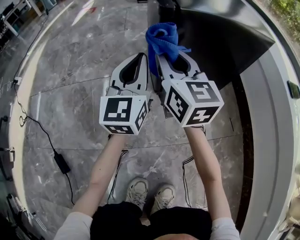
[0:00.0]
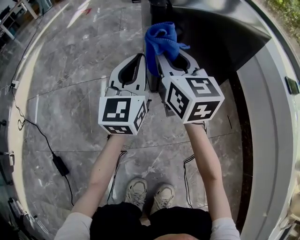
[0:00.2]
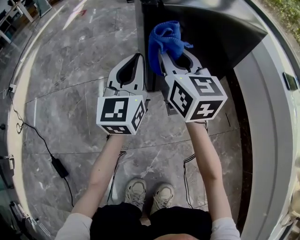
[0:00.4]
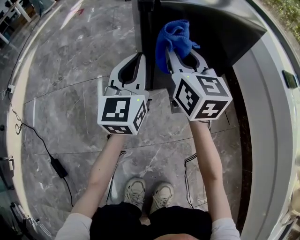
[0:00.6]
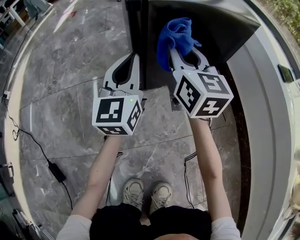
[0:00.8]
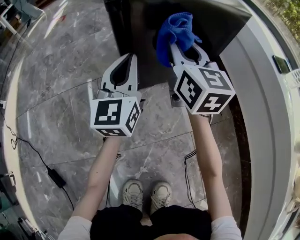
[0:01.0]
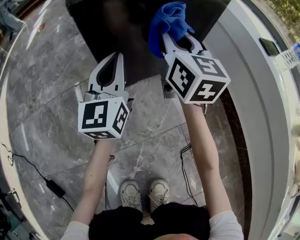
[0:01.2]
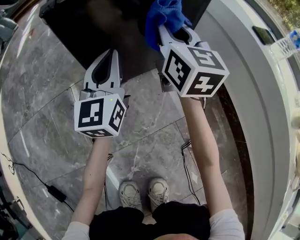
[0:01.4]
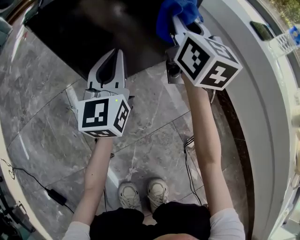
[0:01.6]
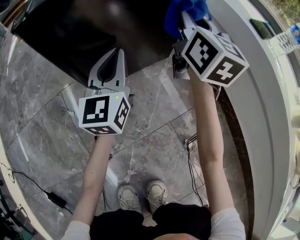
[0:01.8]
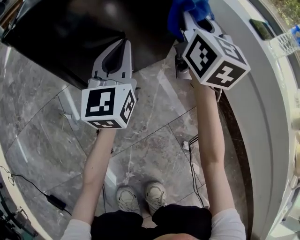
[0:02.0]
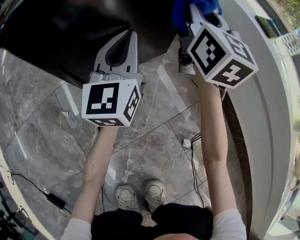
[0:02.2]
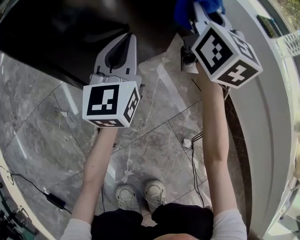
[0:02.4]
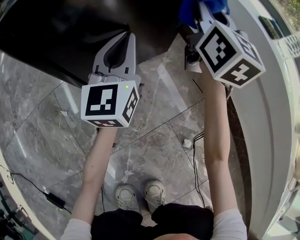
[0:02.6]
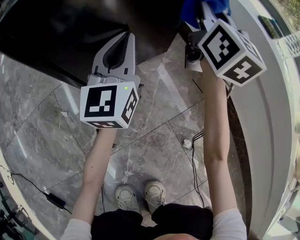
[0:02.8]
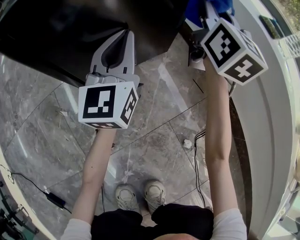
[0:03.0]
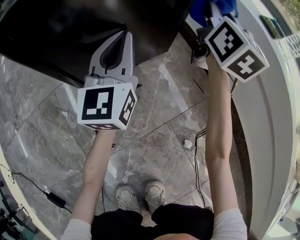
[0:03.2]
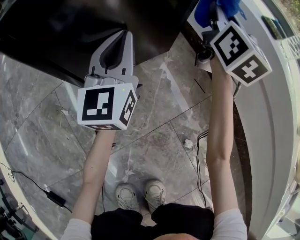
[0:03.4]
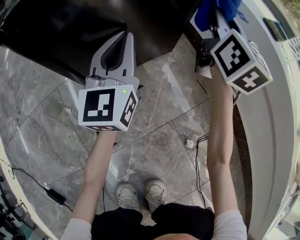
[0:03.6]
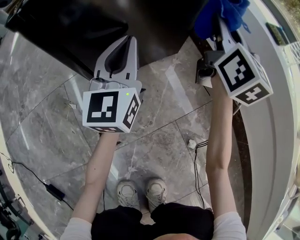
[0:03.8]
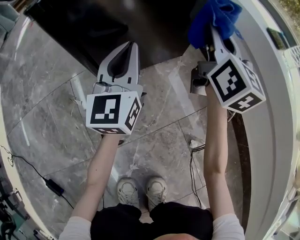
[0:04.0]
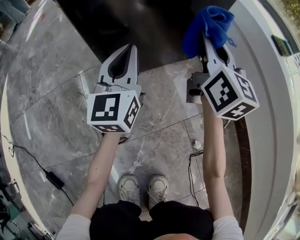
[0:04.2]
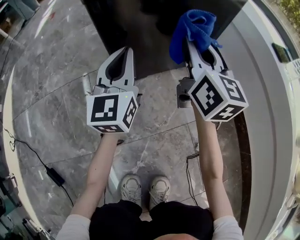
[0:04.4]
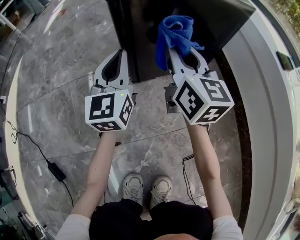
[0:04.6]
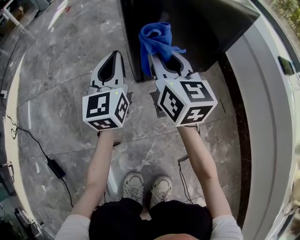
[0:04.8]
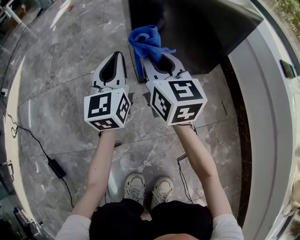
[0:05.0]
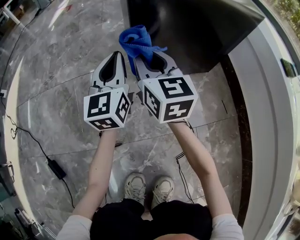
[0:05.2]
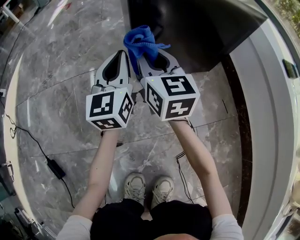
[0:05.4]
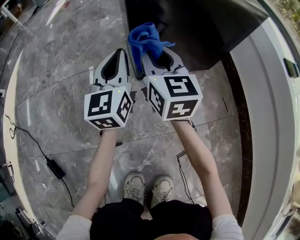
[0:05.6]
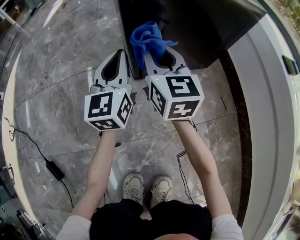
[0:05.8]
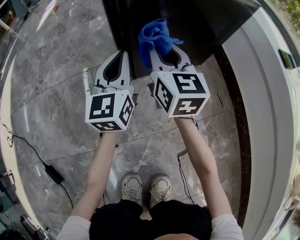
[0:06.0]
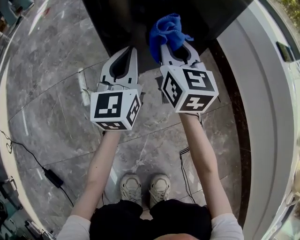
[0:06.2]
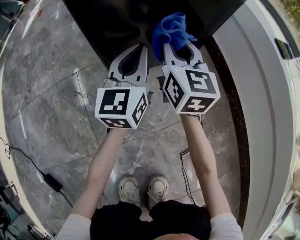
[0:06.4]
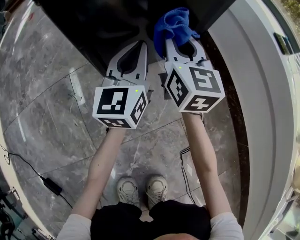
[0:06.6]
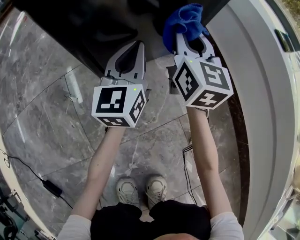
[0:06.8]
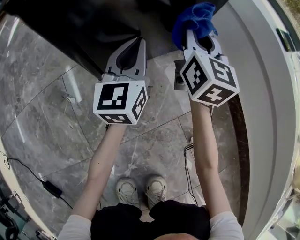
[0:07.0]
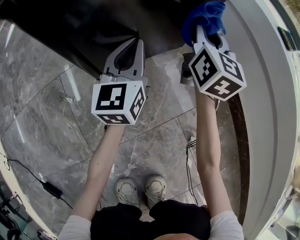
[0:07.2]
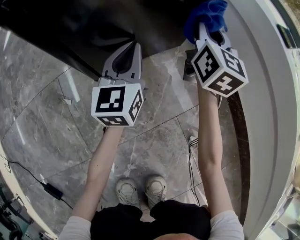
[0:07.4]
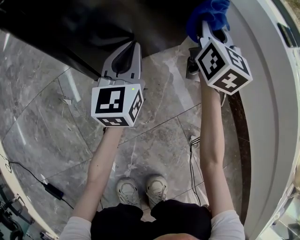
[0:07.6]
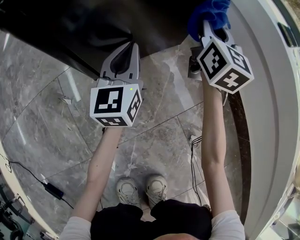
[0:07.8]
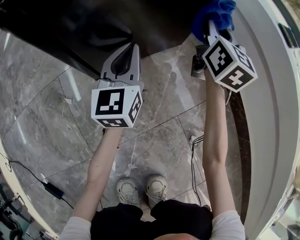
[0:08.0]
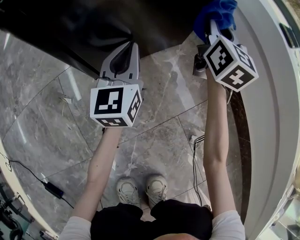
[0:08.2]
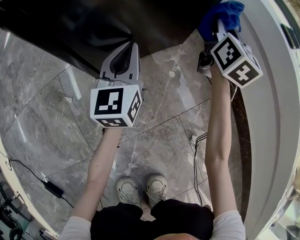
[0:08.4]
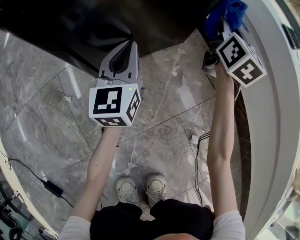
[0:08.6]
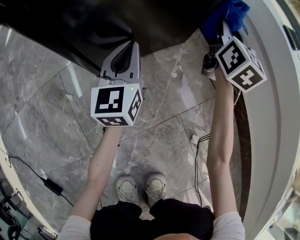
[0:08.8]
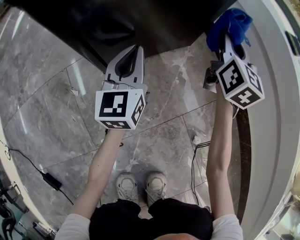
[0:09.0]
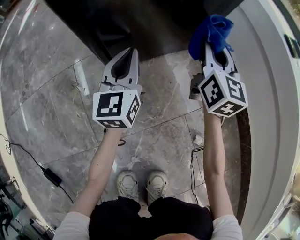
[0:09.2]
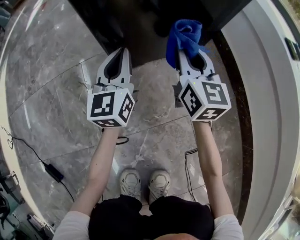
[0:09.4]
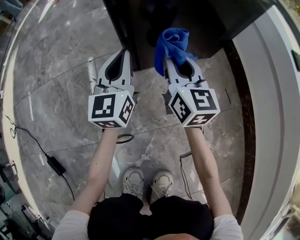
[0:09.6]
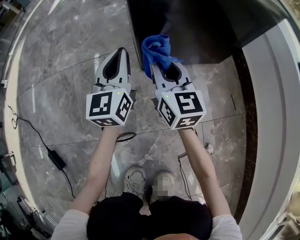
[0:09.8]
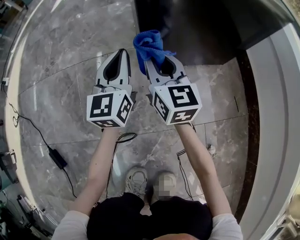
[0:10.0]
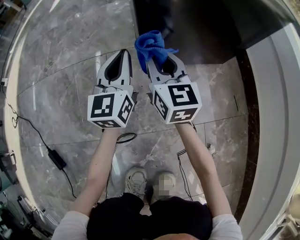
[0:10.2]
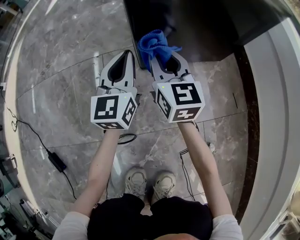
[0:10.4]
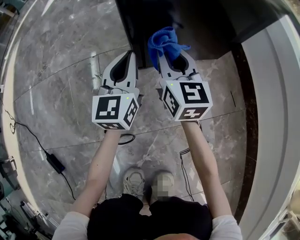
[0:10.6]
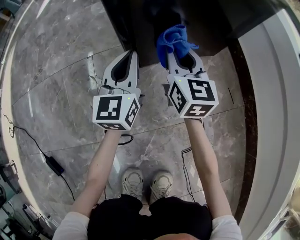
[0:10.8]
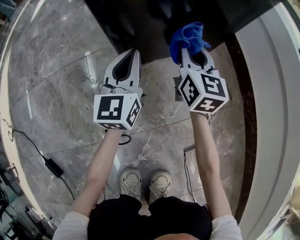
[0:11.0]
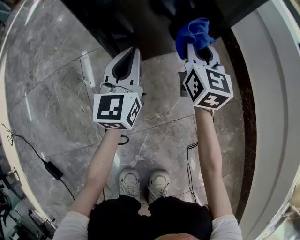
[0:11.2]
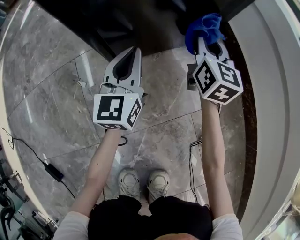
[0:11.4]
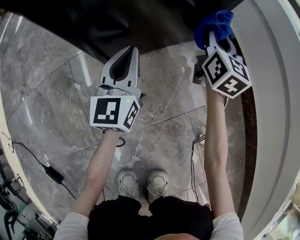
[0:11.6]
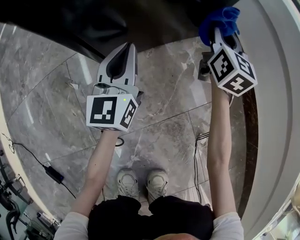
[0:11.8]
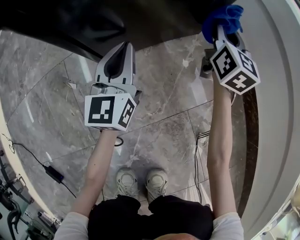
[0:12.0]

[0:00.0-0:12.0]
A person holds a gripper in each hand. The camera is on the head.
0:00.0 to 0:01.6: The left gripper shifts approximately 15 cm to the right; the right gripper moves to the right, approximately 30 cm, and changes its angle by roughly 30 degrees.
0:01.6 to 0:03.0: The right gripper heads to the right and forward, covering roughly 10 cm; the left gripper moves forward, roughly 5 cm.
0:03.0 to 0:04.4: Both grippers move to the left and backward, about 15 cm. The right gripper changes its angle by some 20 degrees.
0:04.4 to 0:06.0: The right gripper shifts about 10 cm to the left and downward.
0:06.0 to 0:07.6: The left gripper heads to the right, downward and forward, covering roughly 15 cm. The right gripper travels to the right and forward by roughly 25 cm, and swivels about 30 degrees.
0:09.0 to 0:10.4: The left gripper shifts by roughly 15 cm. The right gripper moves some 35 cm, and changes its angle by roughly 40 degrees.
0:10.4 to 0:12.0: The left gripper heads to the right, covering some 15 cm. The right gripper moves to the right, roughly 30 cm, and rotates approximately 30 degrees.

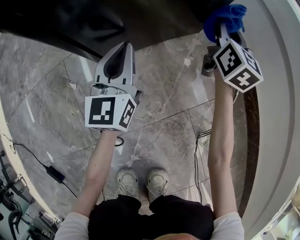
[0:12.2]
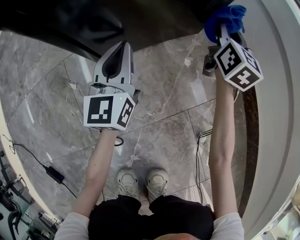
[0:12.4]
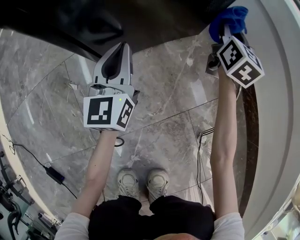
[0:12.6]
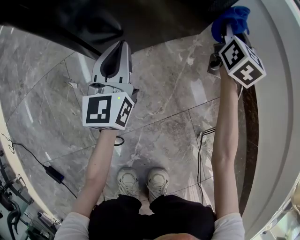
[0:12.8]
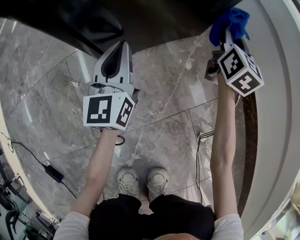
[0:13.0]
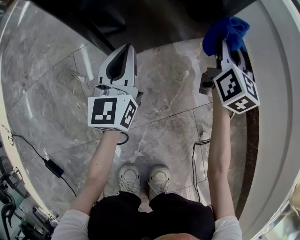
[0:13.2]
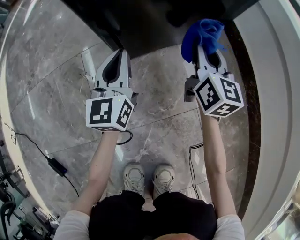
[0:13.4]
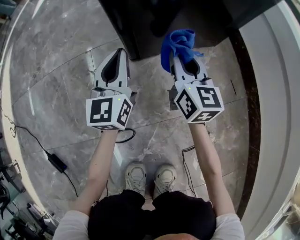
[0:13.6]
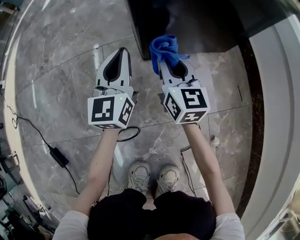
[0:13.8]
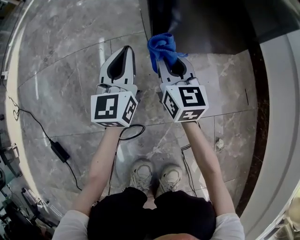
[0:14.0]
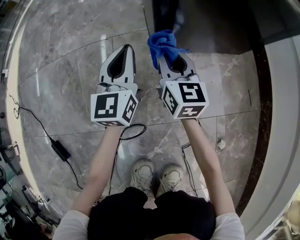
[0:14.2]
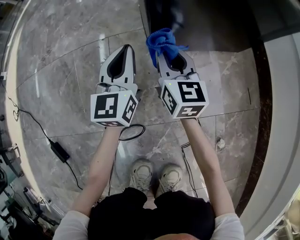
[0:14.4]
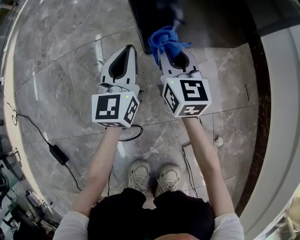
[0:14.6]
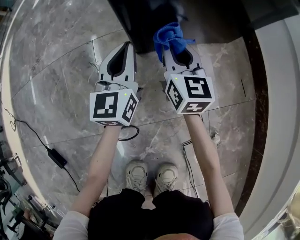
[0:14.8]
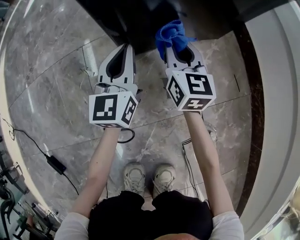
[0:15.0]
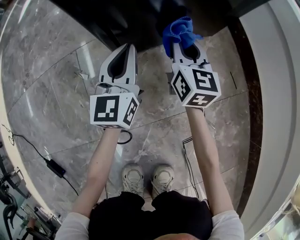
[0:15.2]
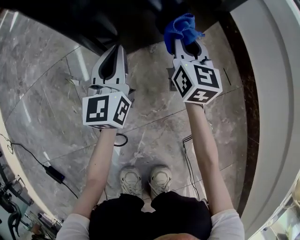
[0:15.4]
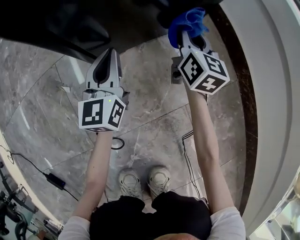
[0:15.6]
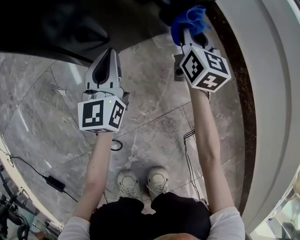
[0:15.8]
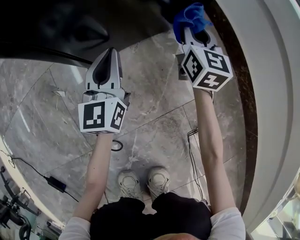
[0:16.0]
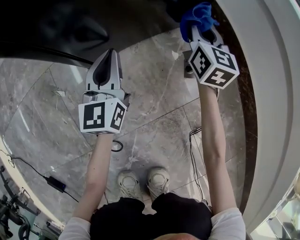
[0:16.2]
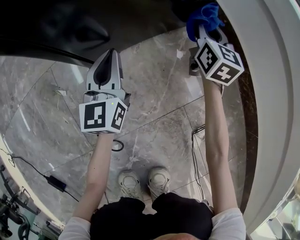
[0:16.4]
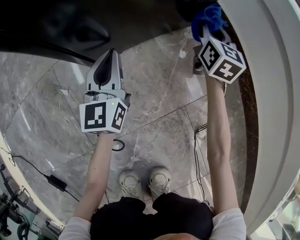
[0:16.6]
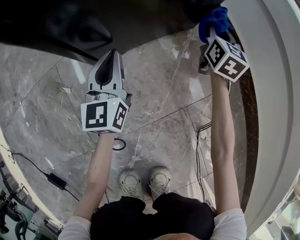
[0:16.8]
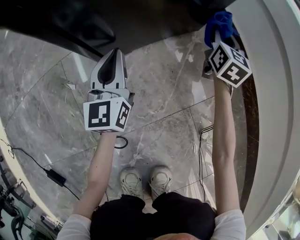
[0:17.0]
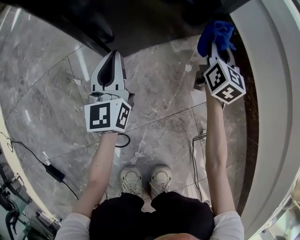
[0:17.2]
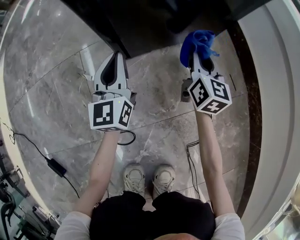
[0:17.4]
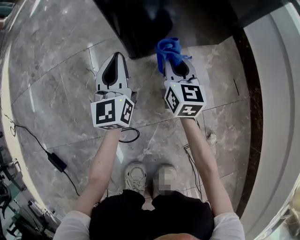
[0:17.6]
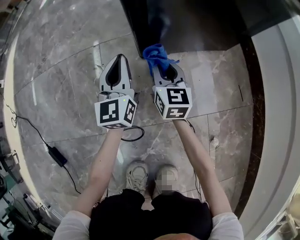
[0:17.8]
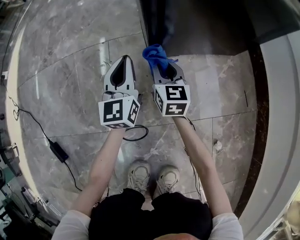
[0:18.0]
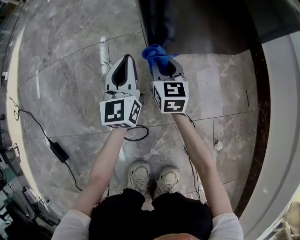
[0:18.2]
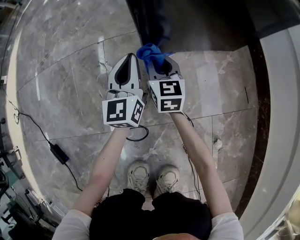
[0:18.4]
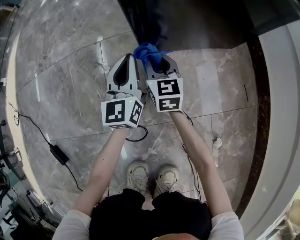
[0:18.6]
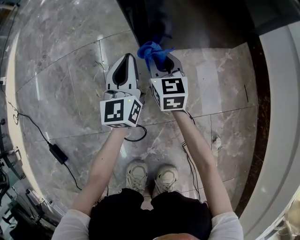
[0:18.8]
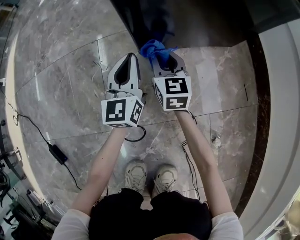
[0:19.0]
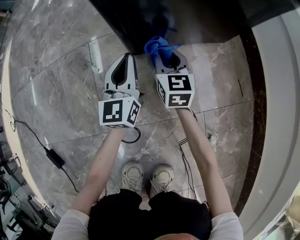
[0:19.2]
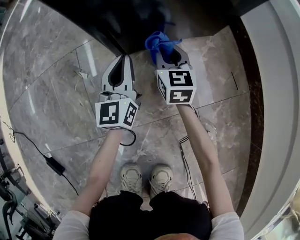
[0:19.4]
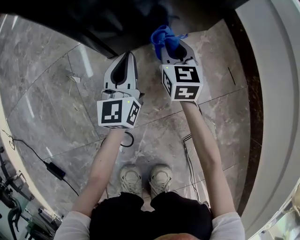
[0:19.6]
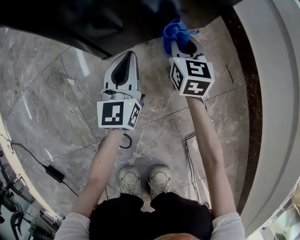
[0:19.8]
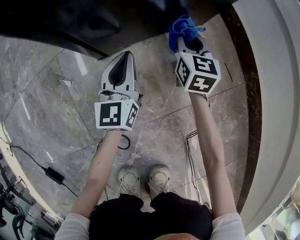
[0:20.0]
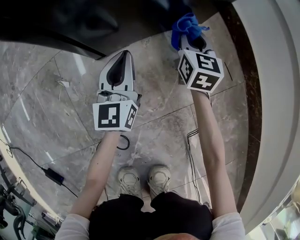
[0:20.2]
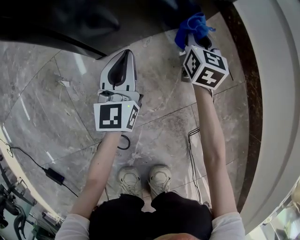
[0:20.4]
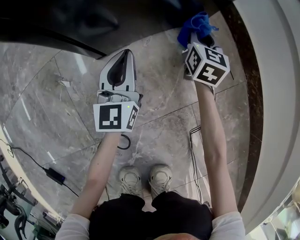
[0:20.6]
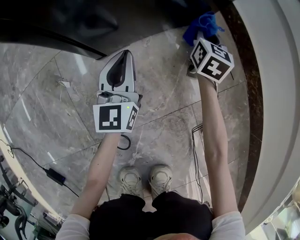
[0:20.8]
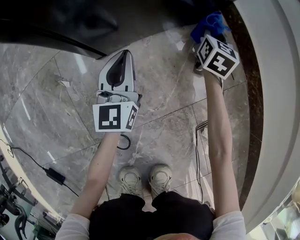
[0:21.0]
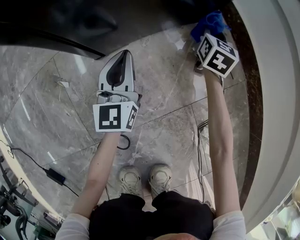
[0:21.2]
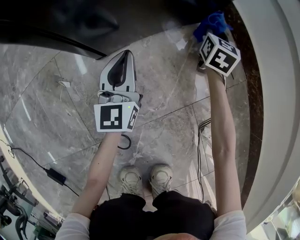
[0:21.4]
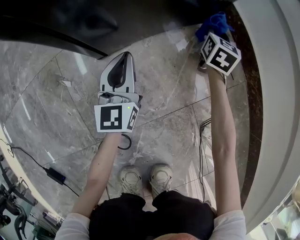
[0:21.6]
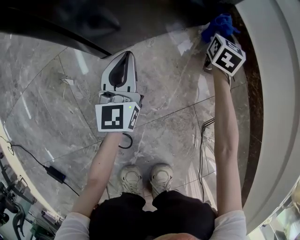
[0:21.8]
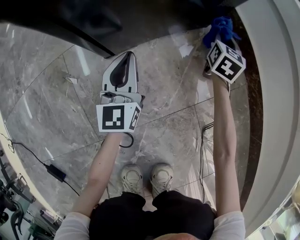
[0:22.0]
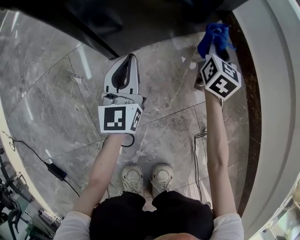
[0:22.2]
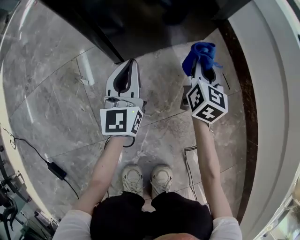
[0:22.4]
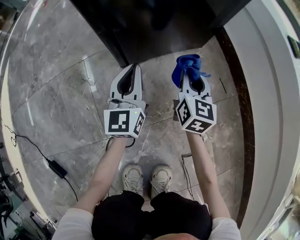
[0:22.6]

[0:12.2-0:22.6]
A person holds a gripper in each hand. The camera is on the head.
0:12.2 to 0:13.6: The left gripper moves to the left and backward, some 15 cm. The right gripper shifts some 25 cm to the left and backward, and swivels roughly 30 degrees.
0:13.6 to 0:15.2: The left gripper goes approximately 5 cm to the right, while the right gripper travels to the left and back again, approximately 10 cm each way.
0:15.2 to 0:16.6: The left gripper shifts by approximately 5 cm; the right gripper moves to the right and forward, some 20 cm.
0:16.6 to 0:18.2: The left gripper shifts by roughly 15 cm. The right gripper ends up some 35 cm from where it was, and swivels about 30 degrees.
0:18.2 to 0:19.6: The two grippers go roughly 15 cm to the right.
0:19.6 to 0:21.2: The right gripper heads to the right and forward, covering approximately 20 cm, and rotates roughly 30 degrees.
0:21.2 to 0:22.6: The left gripper is displaced upward by some 10 cm, while the right gripper heads backward, upward and to the left, covering some 25 cm.

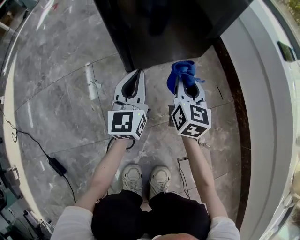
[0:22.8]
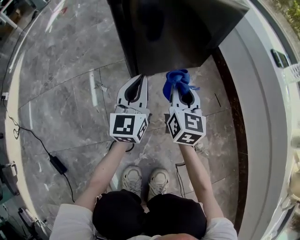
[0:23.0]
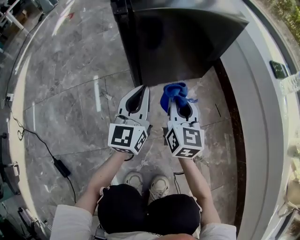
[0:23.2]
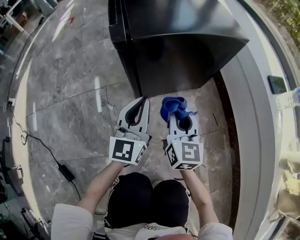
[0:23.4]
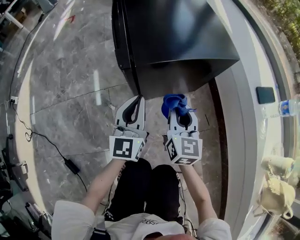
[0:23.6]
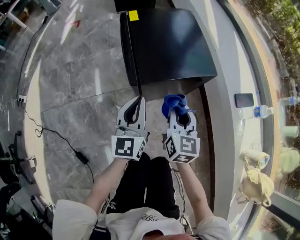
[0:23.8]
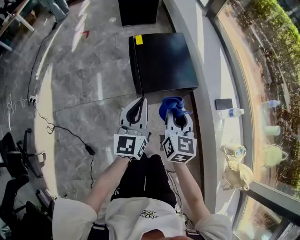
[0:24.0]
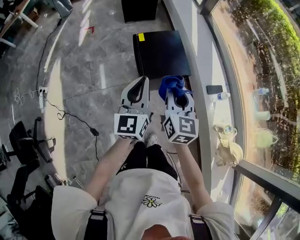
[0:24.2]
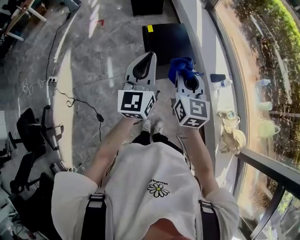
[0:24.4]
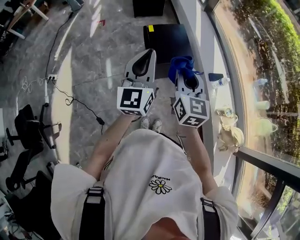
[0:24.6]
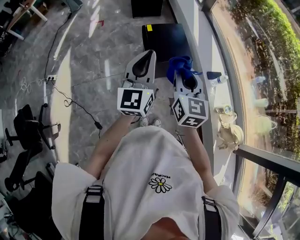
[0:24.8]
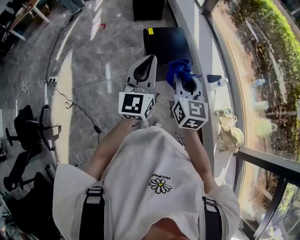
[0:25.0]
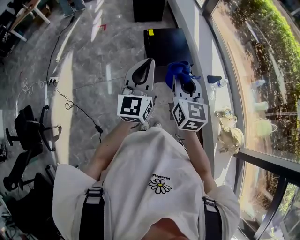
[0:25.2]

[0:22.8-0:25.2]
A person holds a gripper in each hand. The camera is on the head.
0:22.8 to 0:24.0: The two grippers go about 50 cm upward.
0:24.0 to 0:25.2: Both grippers travel together upward and backward, approximately 35 cm.
